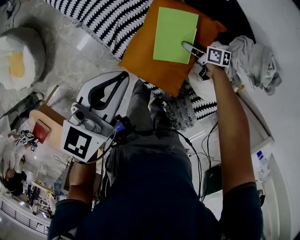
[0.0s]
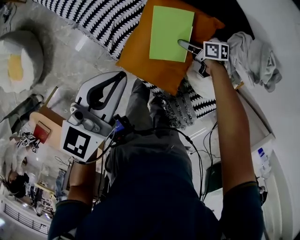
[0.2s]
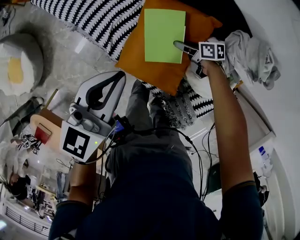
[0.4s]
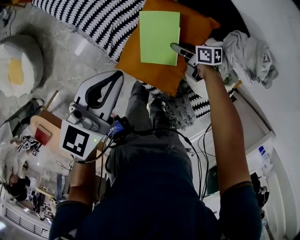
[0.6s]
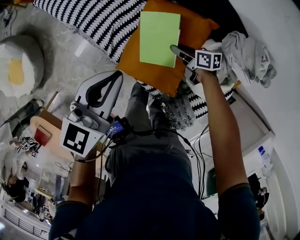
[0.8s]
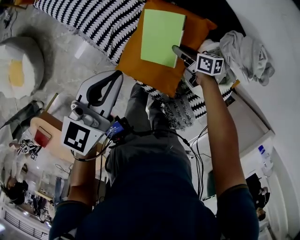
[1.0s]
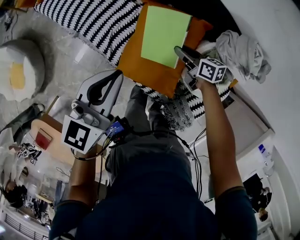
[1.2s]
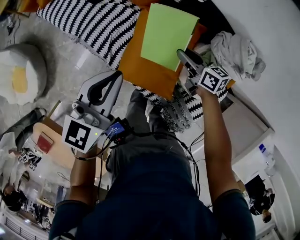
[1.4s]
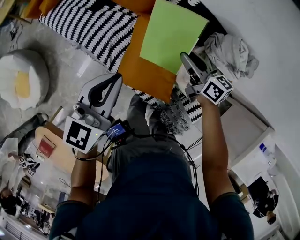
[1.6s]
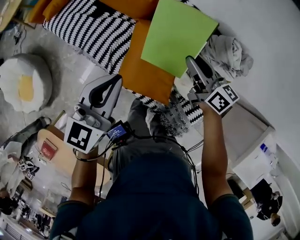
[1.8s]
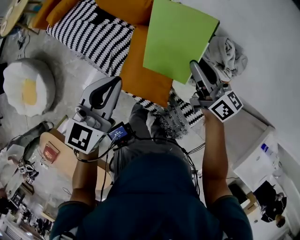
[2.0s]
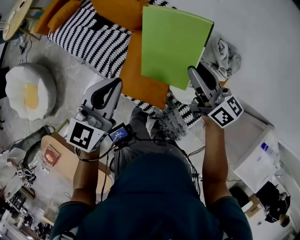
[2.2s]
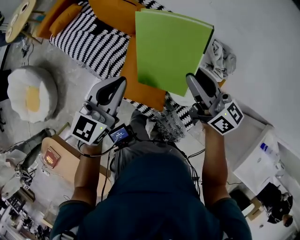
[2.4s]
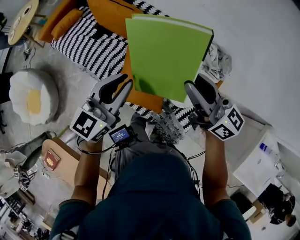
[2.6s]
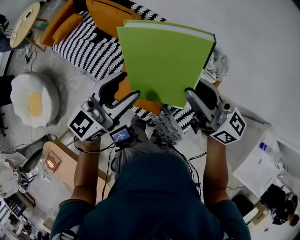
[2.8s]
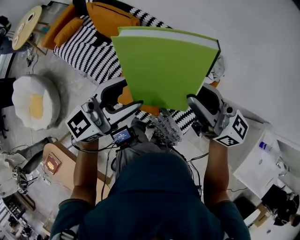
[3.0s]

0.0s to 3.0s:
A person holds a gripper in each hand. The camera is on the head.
0.0s to 1.6s: The right gripper goes roughly 25 cm upward, turns by some 40 degrees, and closes. Meanwhile the left gripper moves upward, approximately 5 cm.
1.6s to 3.0s: The right gripper travels upward and backward by approximately 35 cm, and points its fingers approximately 30 degrees further upward, while the left gripper travels upward, to the right and backward by roughly 25 cm, swivels about 30 degrees, and opens.

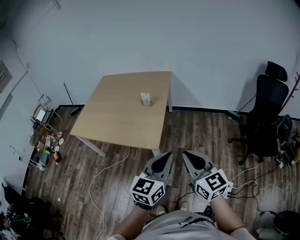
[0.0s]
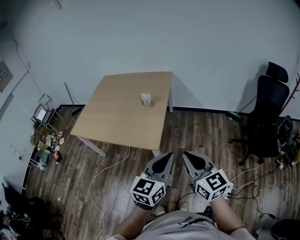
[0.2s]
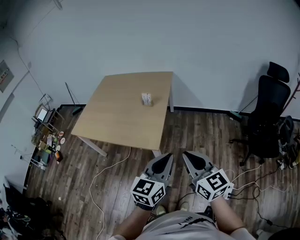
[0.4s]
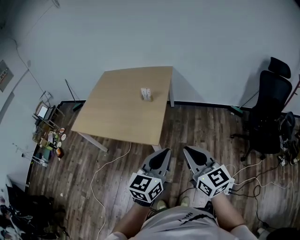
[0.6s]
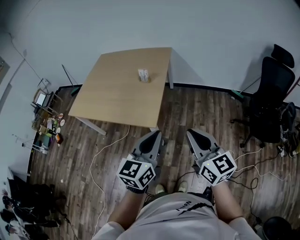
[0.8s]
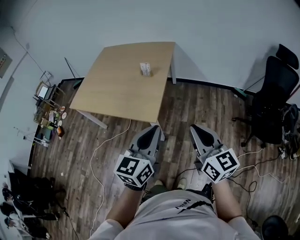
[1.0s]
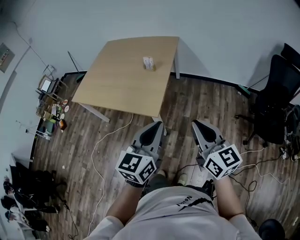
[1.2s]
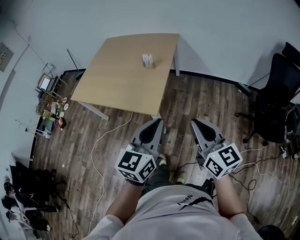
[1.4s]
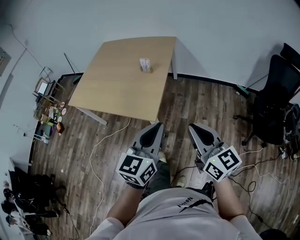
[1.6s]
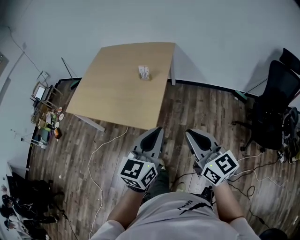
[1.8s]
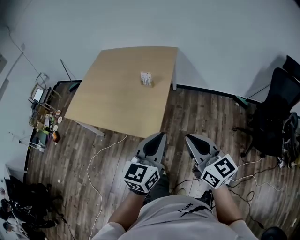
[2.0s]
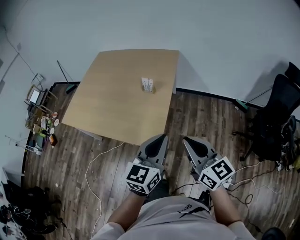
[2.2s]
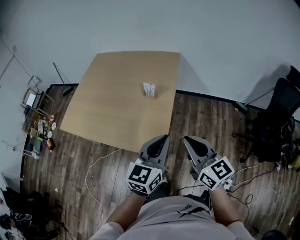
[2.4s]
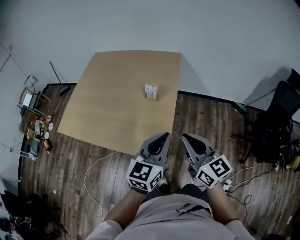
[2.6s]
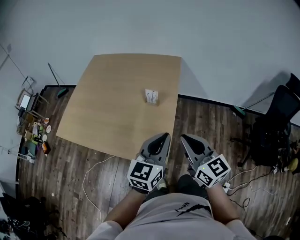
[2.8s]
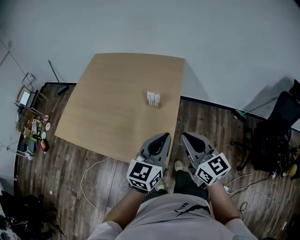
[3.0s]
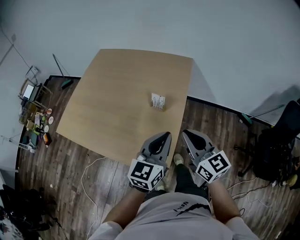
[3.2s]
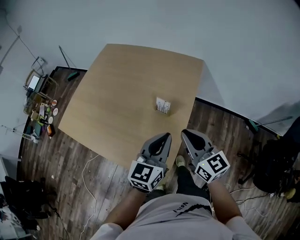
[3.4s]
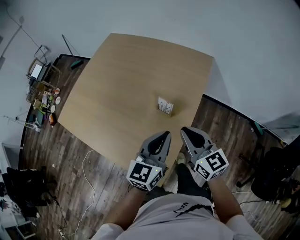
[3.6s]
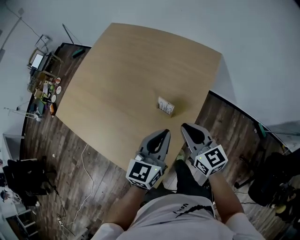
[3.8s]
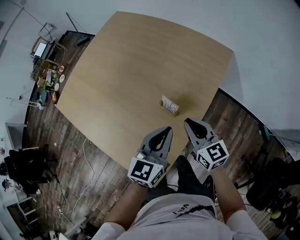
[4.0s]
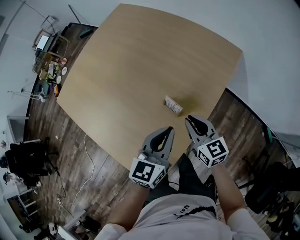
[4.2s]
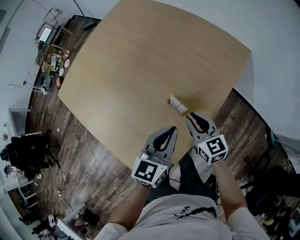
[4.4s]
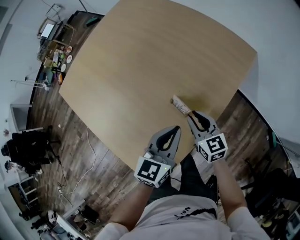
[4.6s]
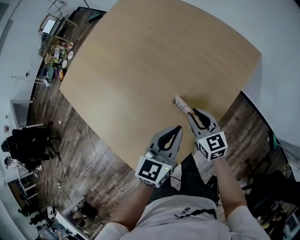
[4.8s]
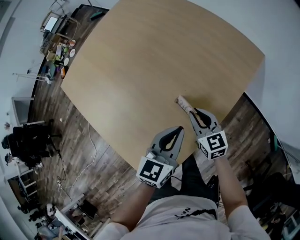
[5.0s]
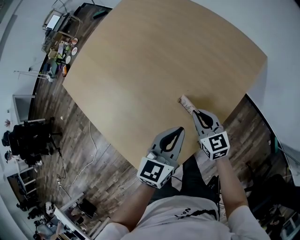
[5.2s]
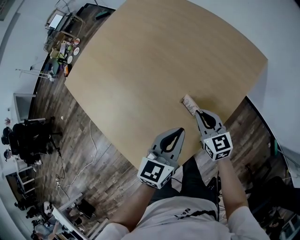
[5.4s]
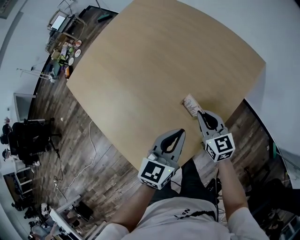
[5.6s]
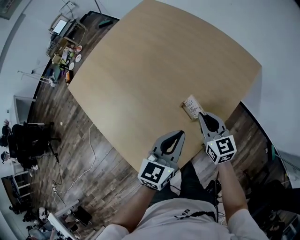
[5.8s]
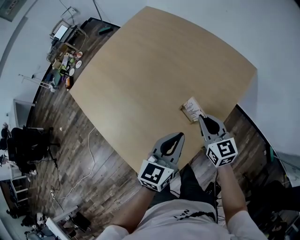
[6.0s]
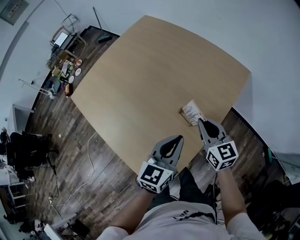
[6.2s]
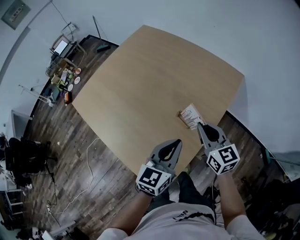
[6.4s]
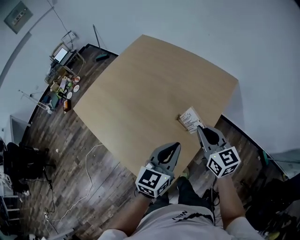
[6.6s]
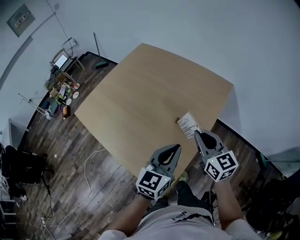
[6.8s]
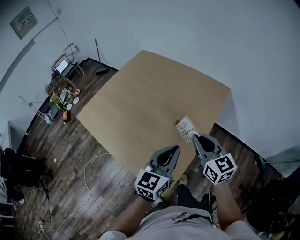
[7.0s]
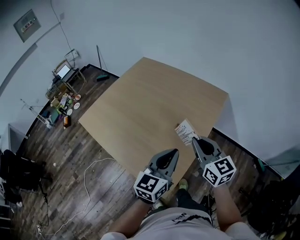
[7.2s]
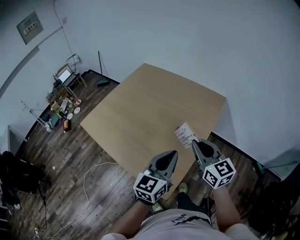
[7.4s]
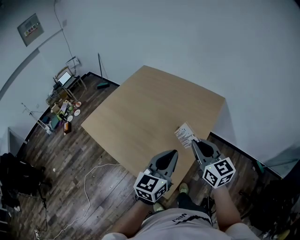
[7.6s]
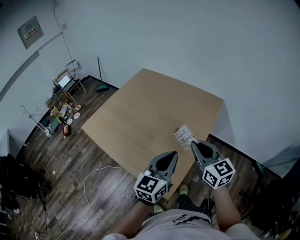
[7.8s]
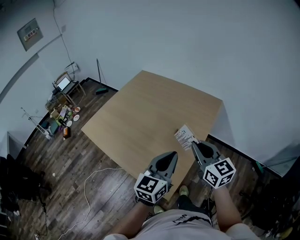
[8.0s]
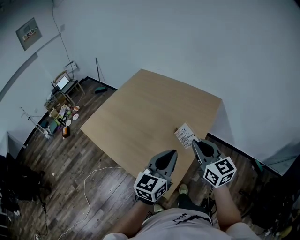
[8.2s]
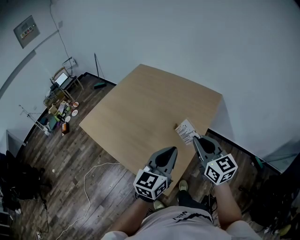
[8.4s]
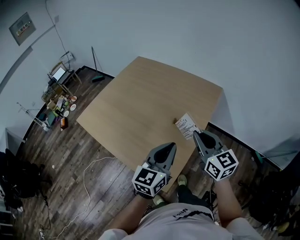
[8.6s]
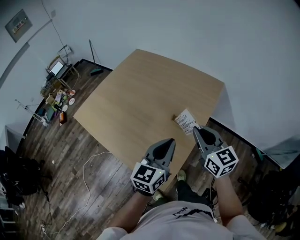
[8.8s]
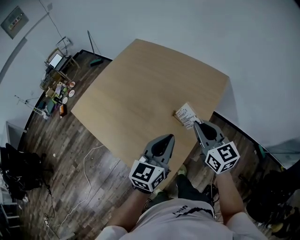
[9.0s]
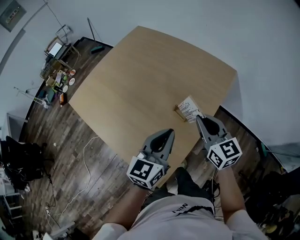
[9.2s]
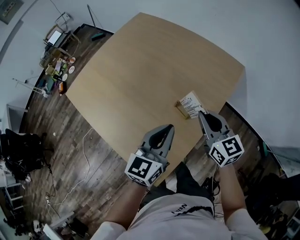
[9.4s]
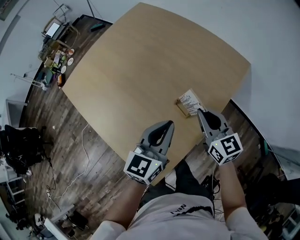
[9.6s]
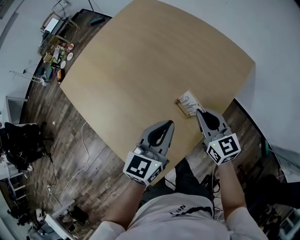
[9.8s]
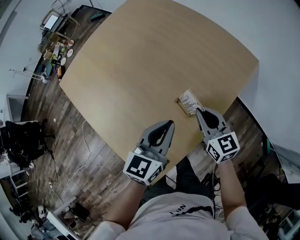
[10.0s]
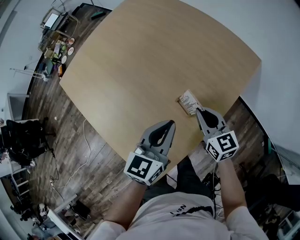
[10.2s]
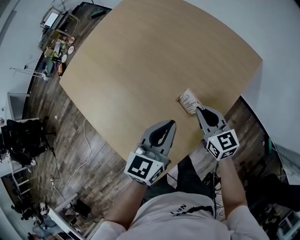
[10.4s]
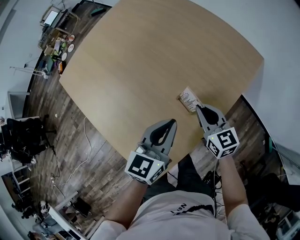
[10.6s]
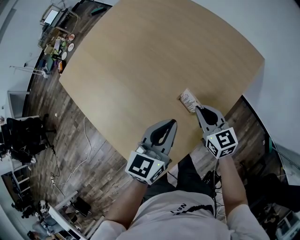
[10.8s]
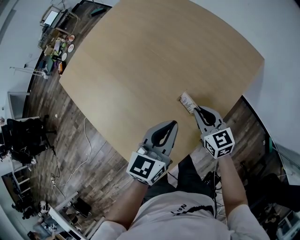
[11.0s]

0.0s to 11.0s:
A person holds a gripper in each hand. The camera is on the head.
0.0s to 1.6s: The right gripper heads to the right, covering about 5 cm.
1.6s to 3.2s: The two grippers go about 35 cm forward.
3.2s to 4.8s: The left gripper is displaced forward and downward by roughly 25 cm, and rotates some 30 degrees. The right gripper is displaced downward and forward by approximately 40 cm, and swivels approximately 30 degrees.
4.8s to 6.2s: The right gripper is displaced upward by roughly 15 cm. Meanwhile the left gripper moves upward, roughly 5 cm.
6.2s to 7.8s: Both grippers travel together upward and backward, about 25 cm.
7.8s to 9.4s: Both grippers move forward and downward, roughly 20 cm.
9.4s to 11.0s: The left gripper travels downward by approximately 10 cm, while the right gripper moves downward, approximately 15 cm.

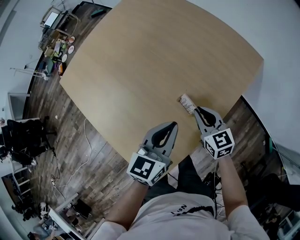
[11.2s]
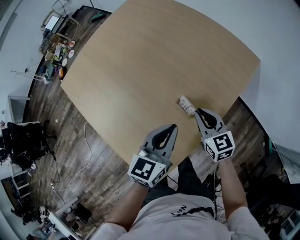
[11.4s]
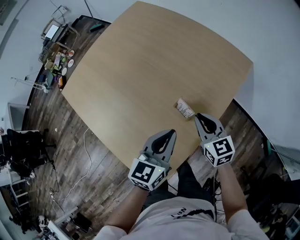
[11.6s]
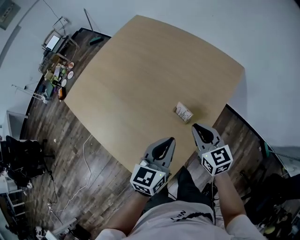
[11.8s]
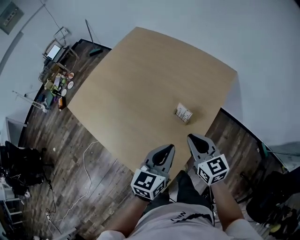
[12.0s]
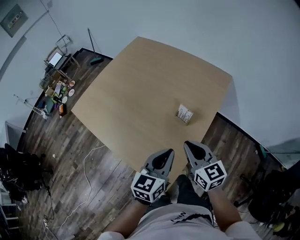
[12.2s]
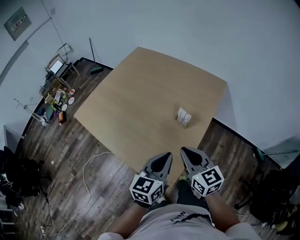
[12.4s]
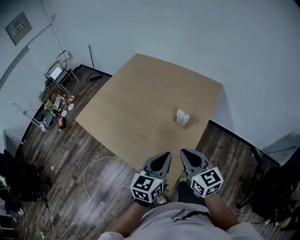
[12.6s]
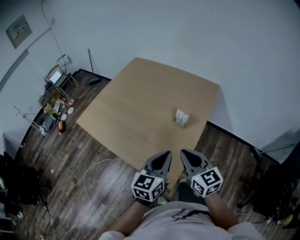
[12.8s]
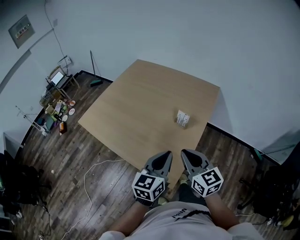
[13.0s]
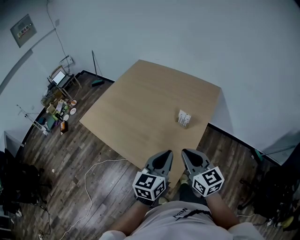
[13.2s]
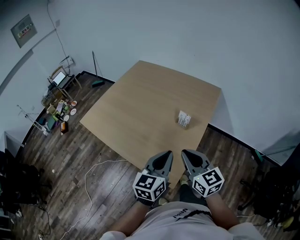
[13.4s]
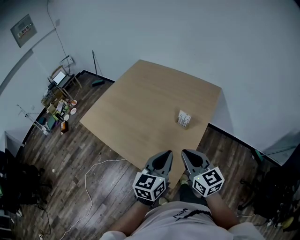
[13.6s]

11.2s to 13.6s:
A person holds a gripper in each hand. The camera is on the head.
11.2s to 12.4s: The right gripper goes approximately 30 cm backward, upward and to the left. The left gripper heads backward and upward, covering roughly 20 cm.
12.4s to 13.6s: The left gripper ends up about 5 cm from where it was, while the right gripper shifts some 5 cm backward.

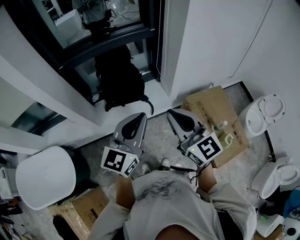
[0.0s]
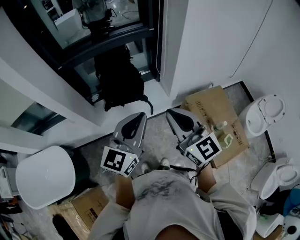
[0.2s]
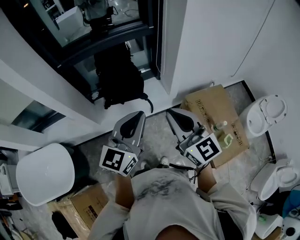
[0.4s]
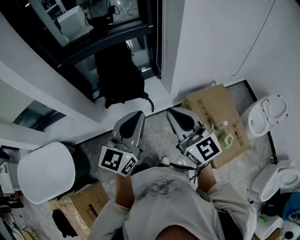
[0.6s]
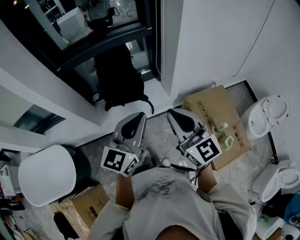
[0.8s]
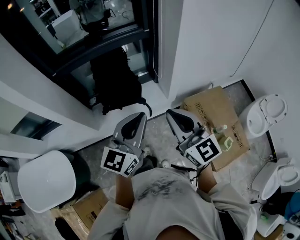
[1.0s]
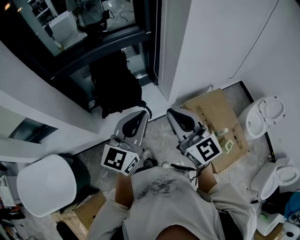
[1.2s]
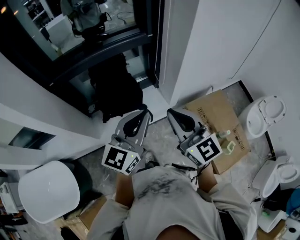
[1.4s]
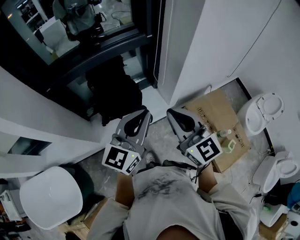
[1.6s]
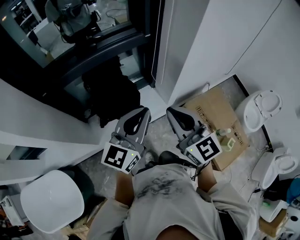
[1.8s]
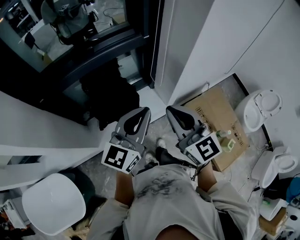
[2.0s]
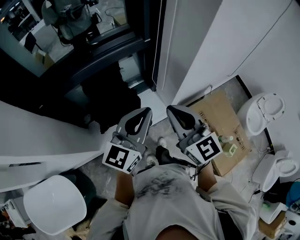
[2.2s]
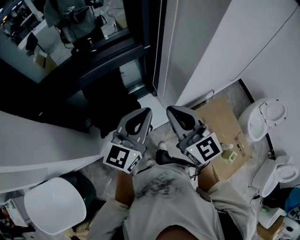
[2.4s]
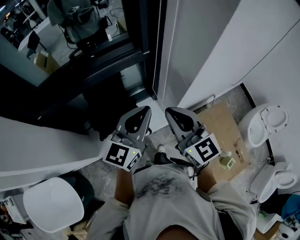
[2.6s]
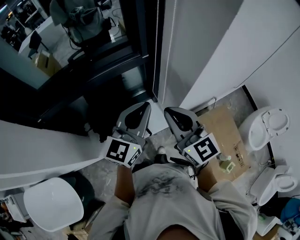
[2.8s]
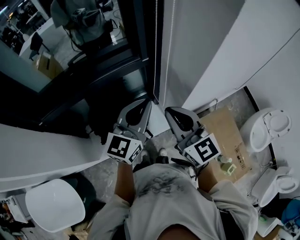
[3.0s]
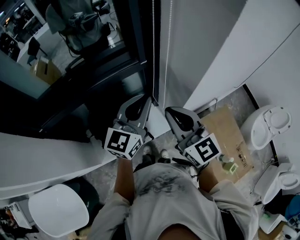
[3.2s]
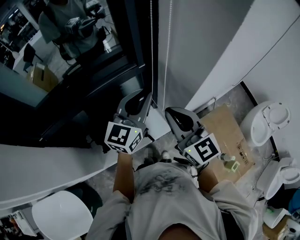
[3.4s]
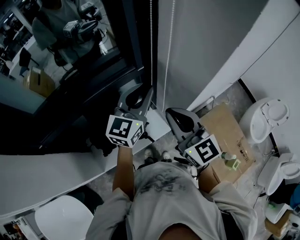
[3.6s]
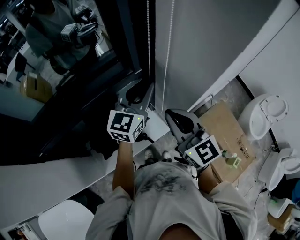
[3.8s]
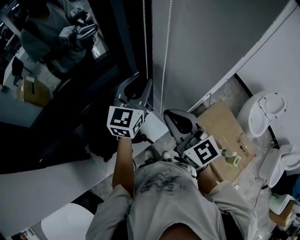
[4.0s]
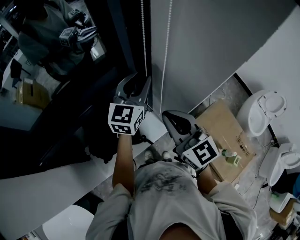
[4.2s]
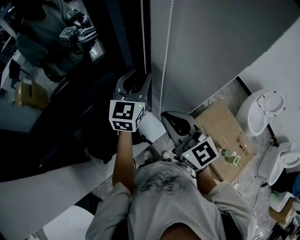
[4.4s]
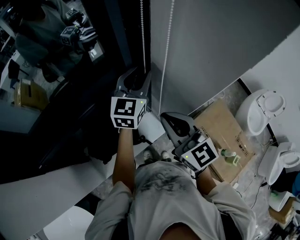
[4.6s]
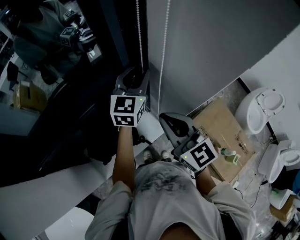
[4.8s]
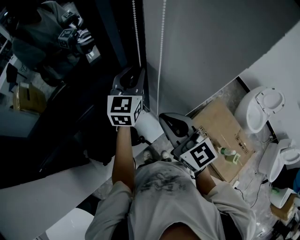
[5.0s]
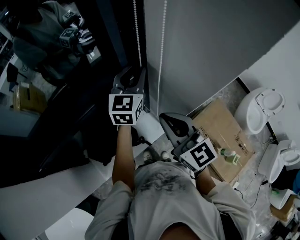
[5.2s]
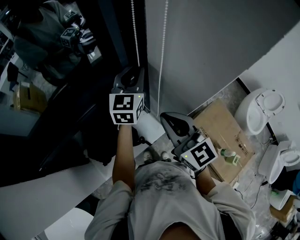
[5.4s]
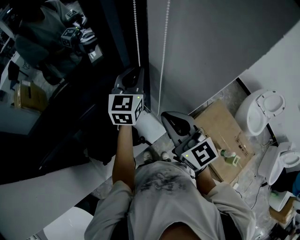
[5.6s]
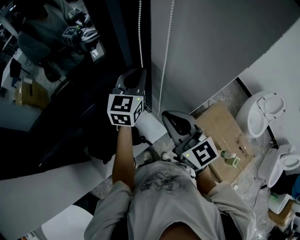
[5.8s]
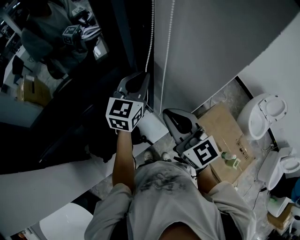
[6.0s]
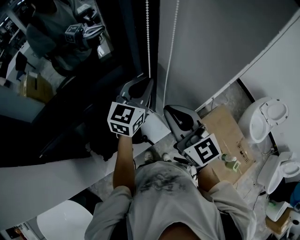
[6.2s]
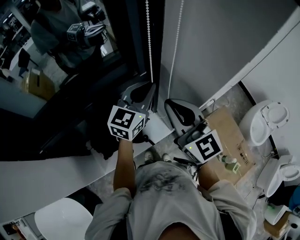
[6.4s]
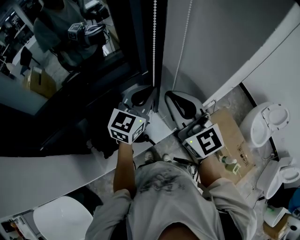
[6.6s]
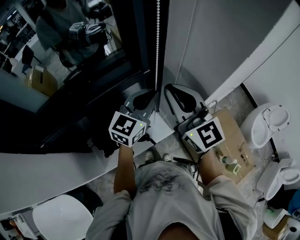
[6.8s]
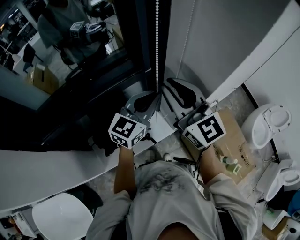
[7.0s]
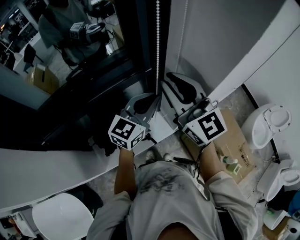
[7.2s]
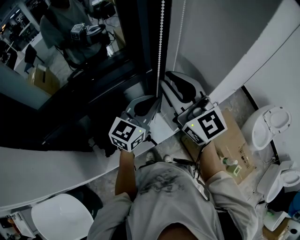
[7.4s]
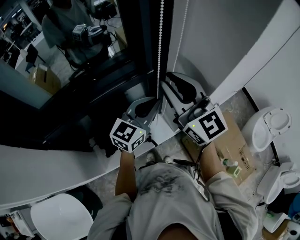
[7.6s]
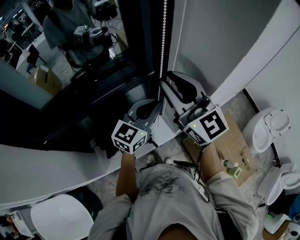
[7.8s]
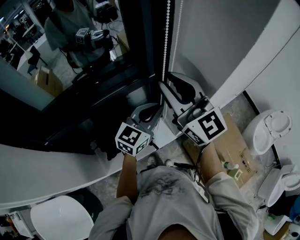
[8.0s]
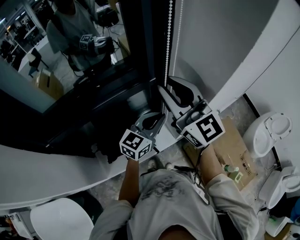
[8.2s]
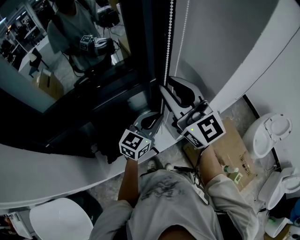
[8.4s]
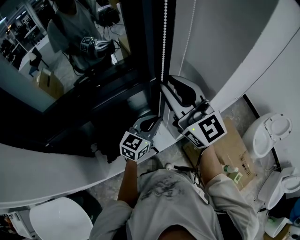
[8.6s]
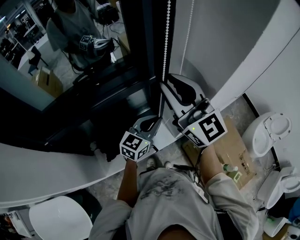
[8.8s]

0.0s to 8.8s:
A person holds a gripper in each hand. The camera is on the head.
0.0s to 1.4s: Both grippers travel together forward, approximately 10 cm.
1.4s to 3.0s: Both grippers move forward, approximately 25 cm.
3.0s to 4.4s: The right gripper moves forward, about 10 cm, while the left gripper shifts roughly 20 cm forward, and opens.
4.4s to 5.8s: The left gripper closes up.
5.8s to 7.4s: The right gripper goes roughly 10 cm upward; the left gripper travels backward by about 15 cm.
7.4s to 8.8s: The left gripper moves downward, about 10 cm.
